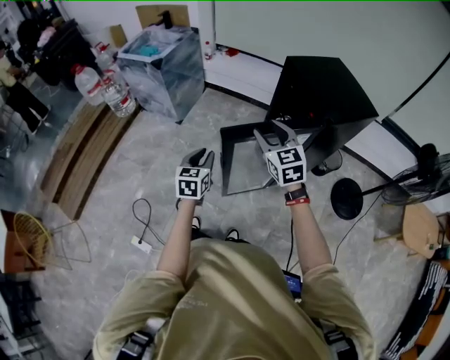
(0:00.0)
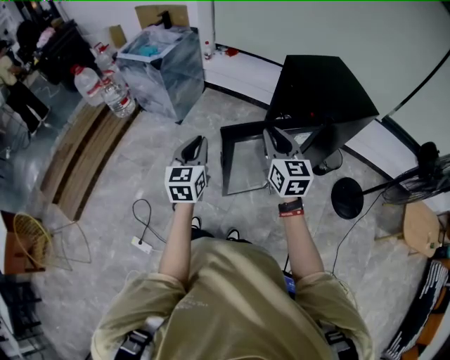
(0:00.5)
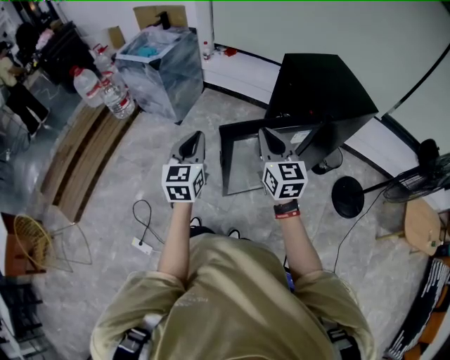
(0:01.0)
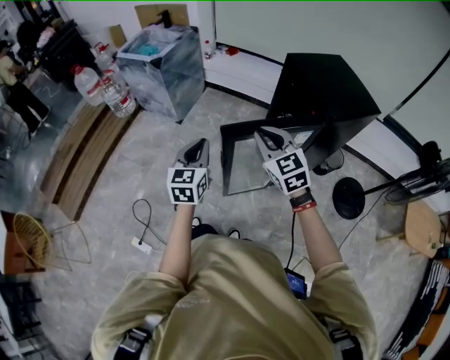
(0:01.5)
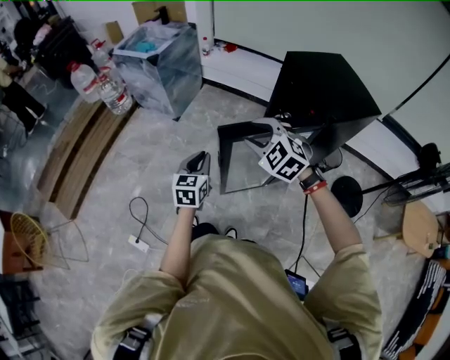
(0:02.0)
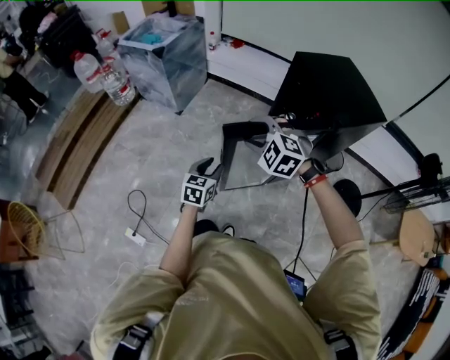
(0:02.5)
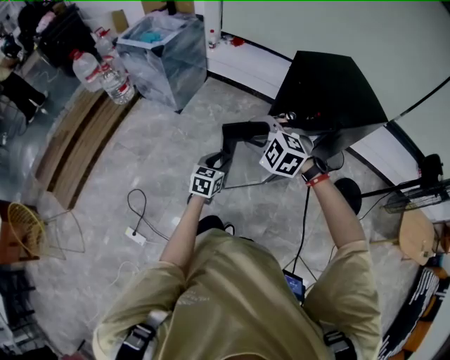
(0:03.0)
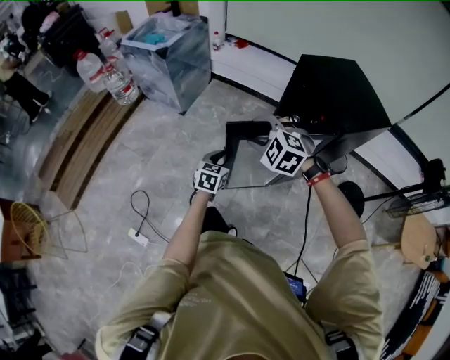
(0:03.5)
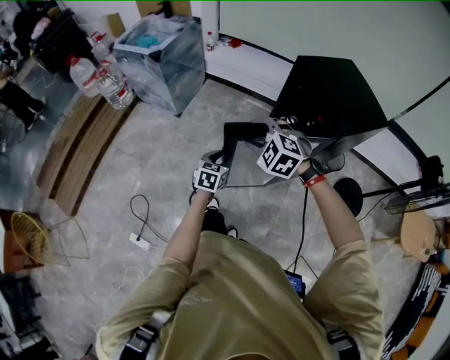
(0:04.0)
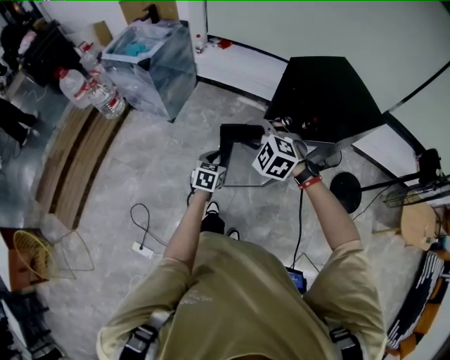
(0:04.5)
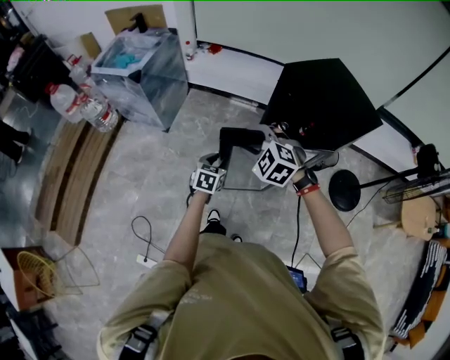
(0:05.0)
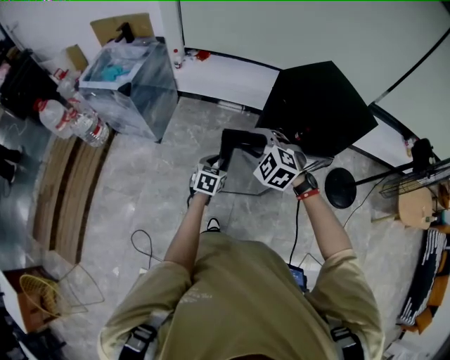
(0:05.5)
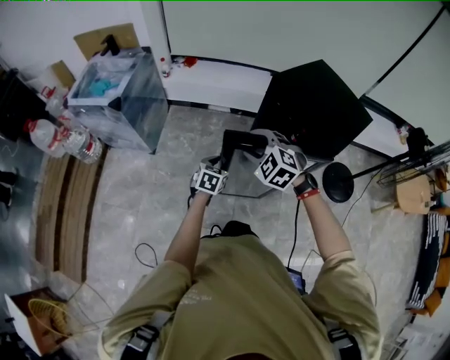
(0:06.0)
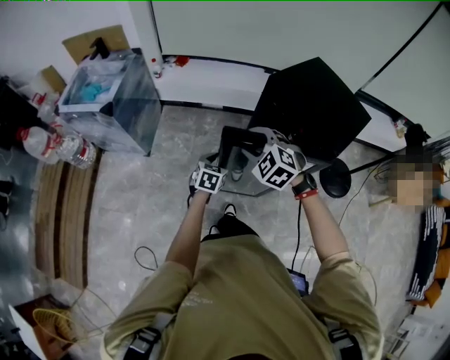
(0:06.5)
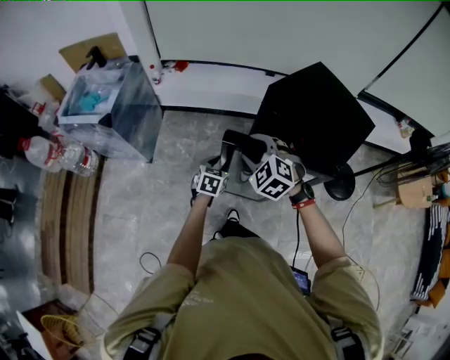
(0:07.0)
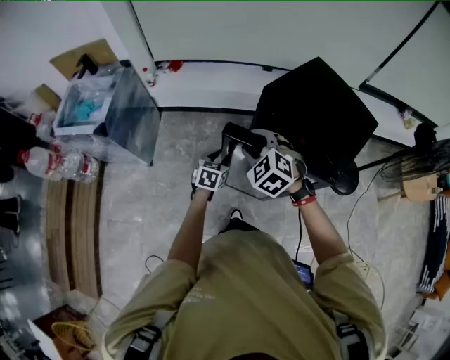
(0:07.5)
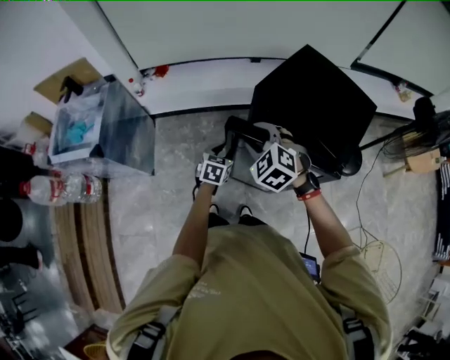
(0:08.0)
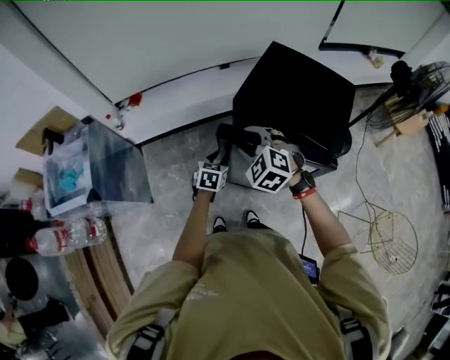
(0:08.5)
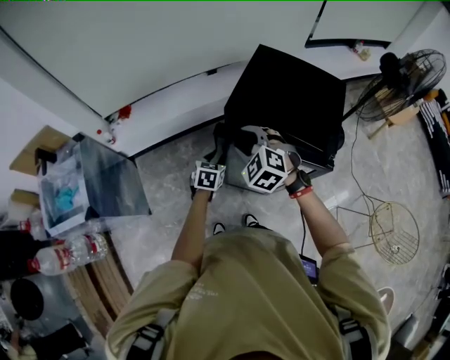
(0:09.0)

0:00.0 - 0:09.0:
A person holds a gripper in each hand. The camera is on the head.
0:00.0 - 0:02.0: The left gripper reaches about 10 cm upward, then returns. The right gripper moves roughly 5 cm, turns by about 40 degrees, and closes and opens again.
0:02.0 - 0:04.5: The right gripper goes roughly 10 cm forward; the left gripper shifts about 15 cm forward, downward and to the right, and opens its fingers.
0:04.5 - 0:07.0: Both grippers travel together forward, roughly 20 cm. The right gripper changes its angle by roughly 30 degrees.
0:07.0 - 0:09.0: Both grippers move forward, roughly 15 cm. The left gripper changes its angle by some 20 degrees, while the right gripper changes its angle by approximately 20 degrees.

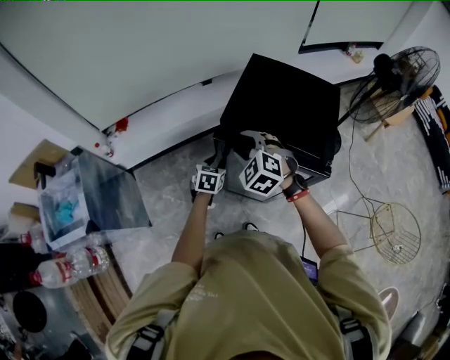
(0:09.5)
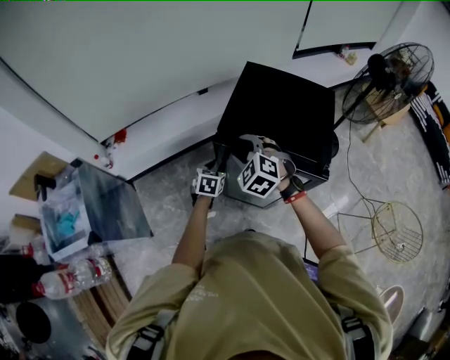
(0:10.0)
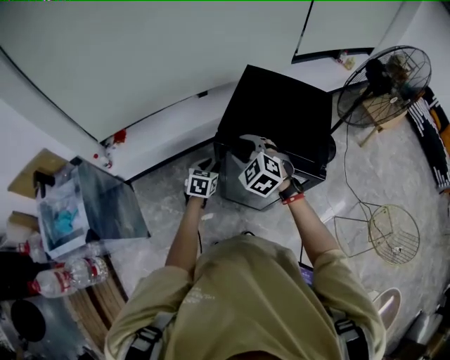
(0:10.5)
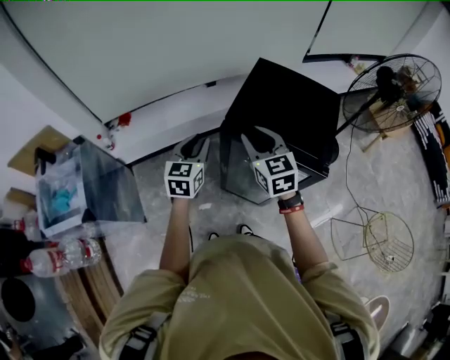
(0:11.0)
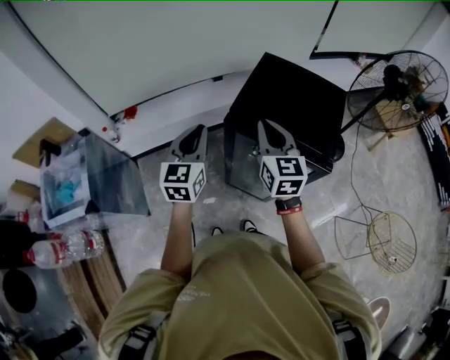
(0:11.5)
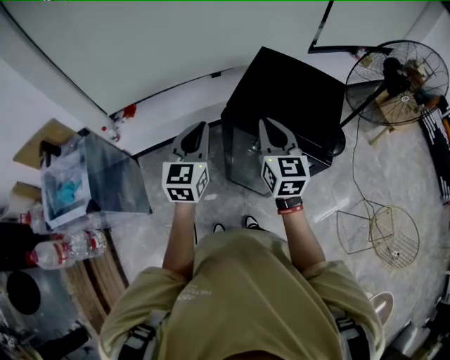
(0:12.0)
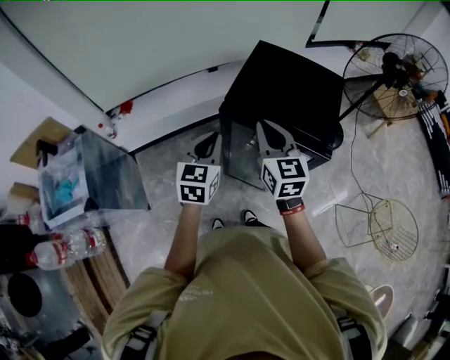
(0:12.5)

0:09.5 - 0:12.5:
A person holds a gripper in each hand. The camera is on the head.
0:09.5 - 0:11.0: The left gripper moves upward, roughly 20 cm, and turns by some 30 degrees; the right gripper travels upward by approximately 10 cm, and turns by about 50 degrees.
0:11.0 - 0:12.5: The left gripper moves backward, approximately 5 cm, travels upward and back again, some 10 cm each way, and closes its fingers; the right gripper closes up.

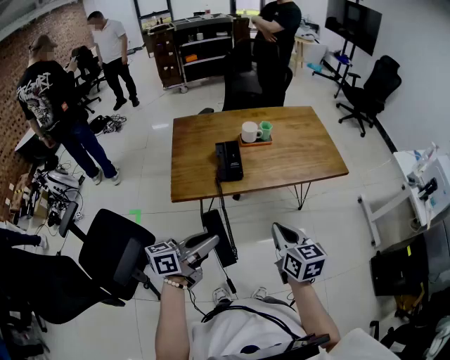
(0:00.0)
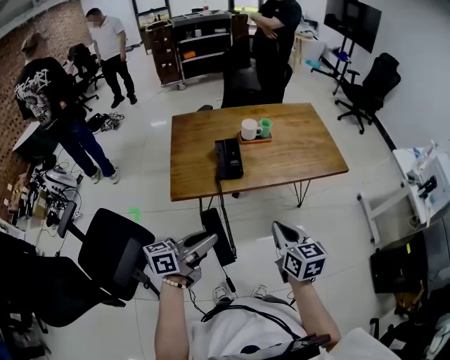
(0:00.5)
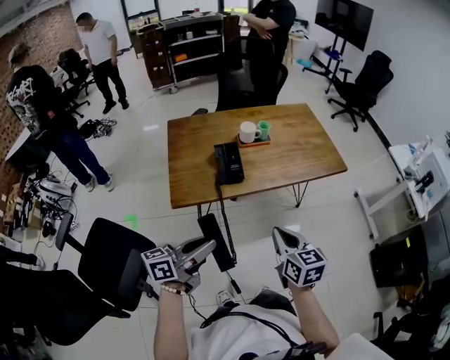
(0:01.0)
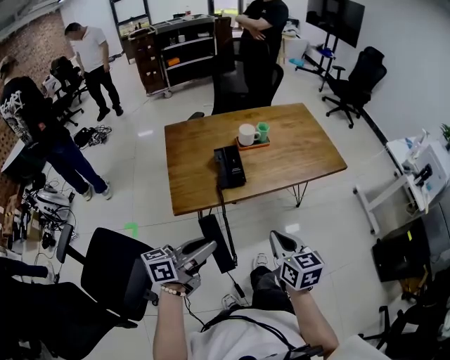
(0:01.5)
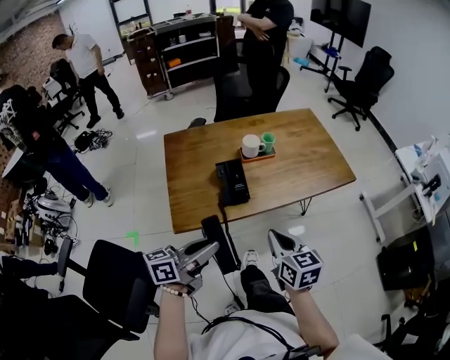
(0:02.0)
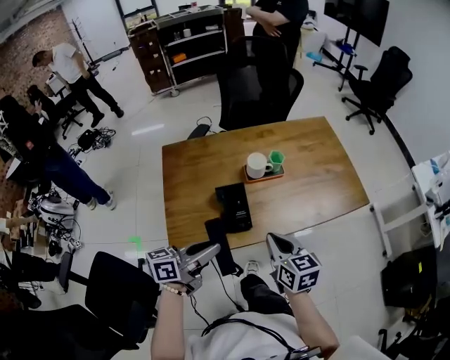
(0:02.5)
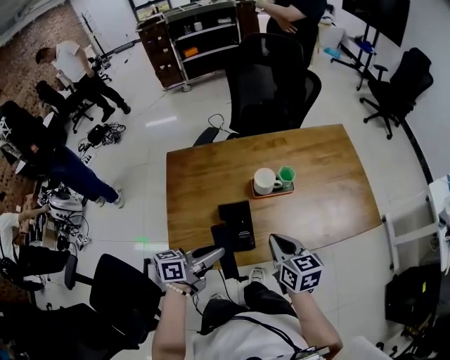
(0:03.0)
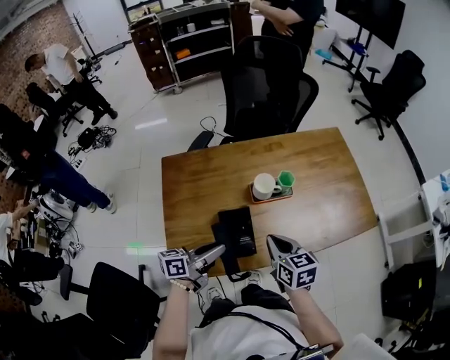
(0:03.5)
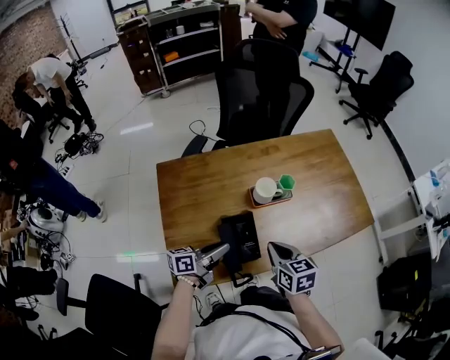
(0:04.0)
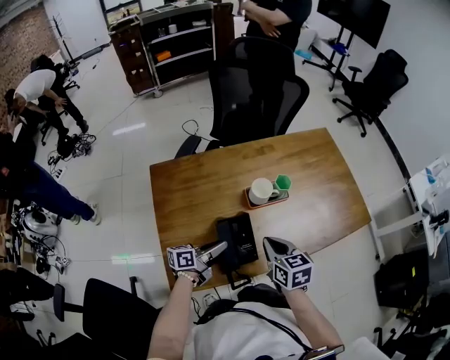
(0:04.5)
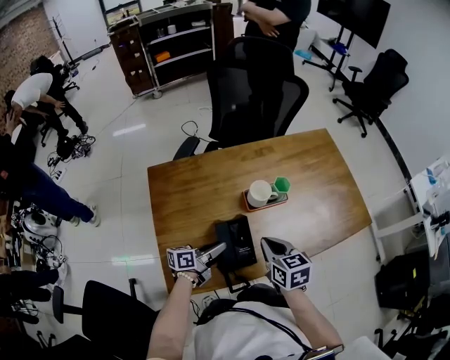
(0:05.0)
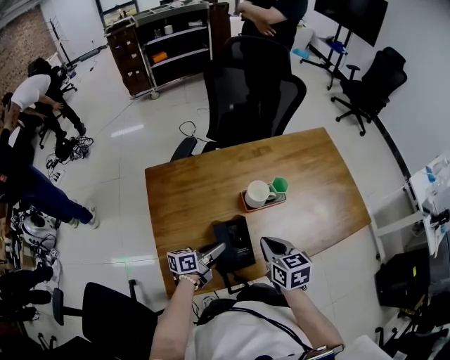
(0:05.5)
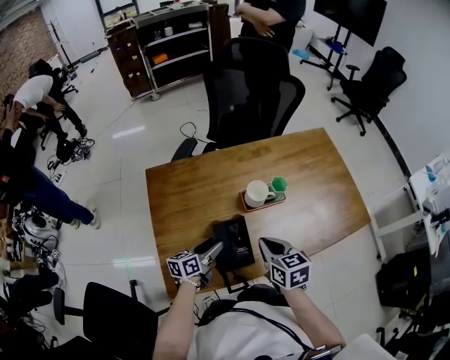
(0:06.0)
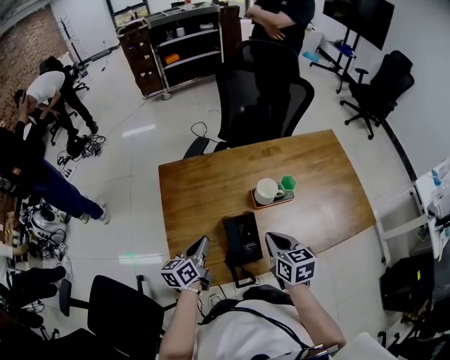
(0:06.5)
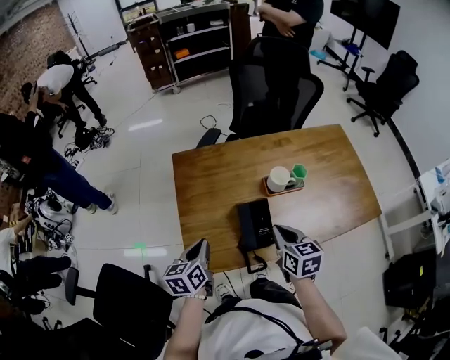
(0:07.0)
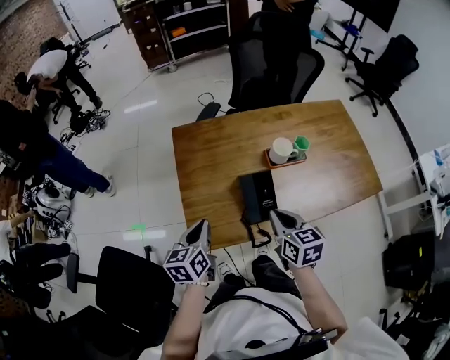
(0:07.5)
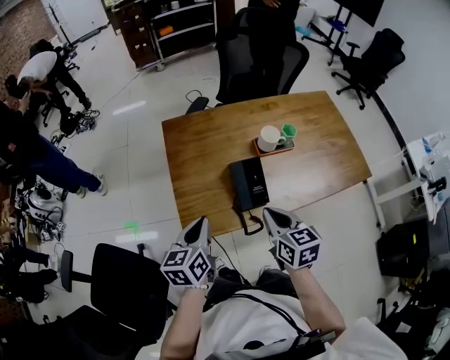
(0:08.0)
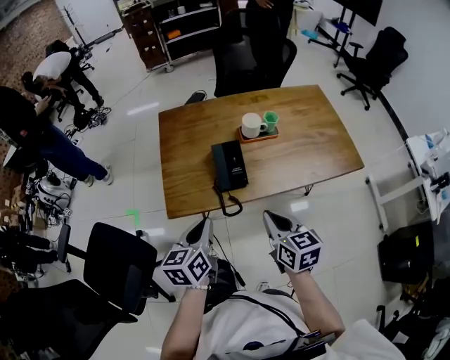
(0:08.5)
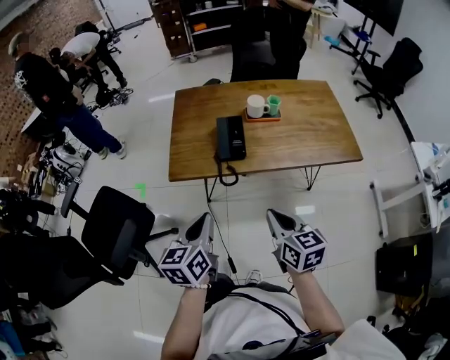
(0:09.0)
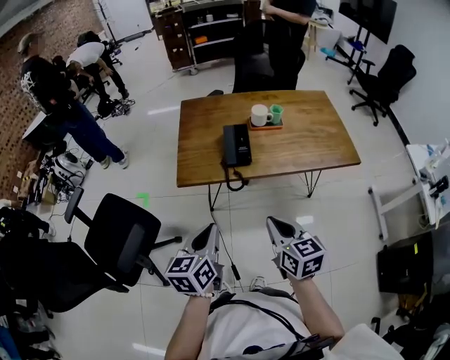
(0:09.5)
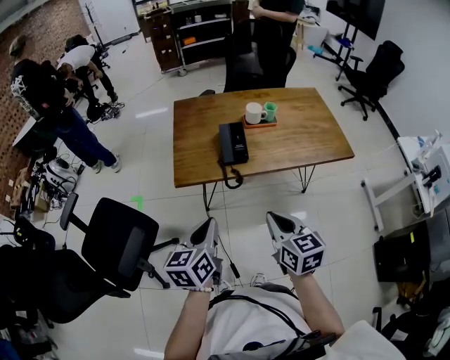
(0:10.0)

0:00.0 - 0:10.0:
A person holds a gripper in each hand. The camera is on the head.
0:00.0 - 0:02.0: The grippers both shift forward and to the left by about 10 cm.
0:02.0 - 0:04.0: The right gripper heads forward, covering about 20 cm, while the left gripper travels forward and downward by some 30 cm.
0:04.0 - 0:06.0: The left gripper travels downward by approximately 10 cm, changes its angle by some 20 degrees, and opens its fingers.
0:06.0 - 0:08.0: The right gripper shifts approximately 15 cm backward, to the left and upward. The left gripper heads upward, backward and to the left, covering approximately 25 cm, swivels roughly 30 degrees, and closes its fingers.
0:08.0 - 0:10.0: The grippers both shift backward by about 25 cm.

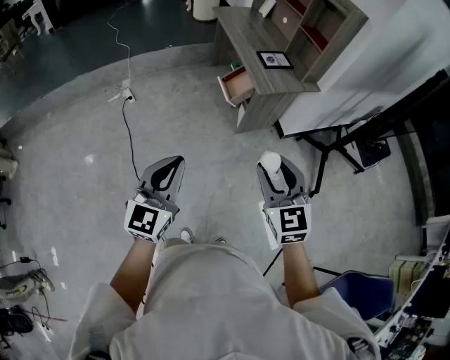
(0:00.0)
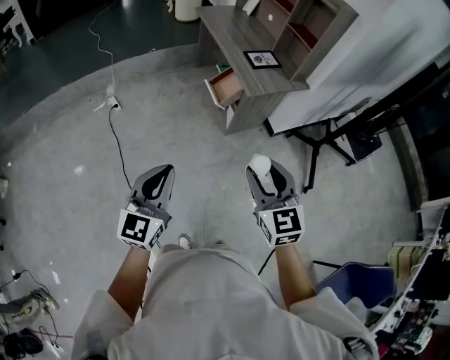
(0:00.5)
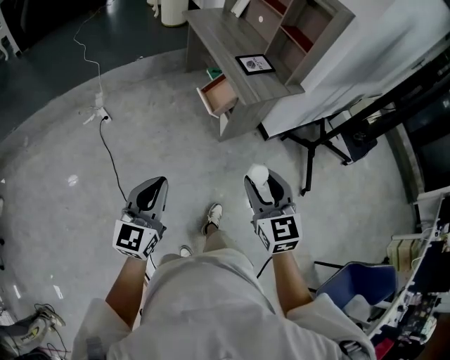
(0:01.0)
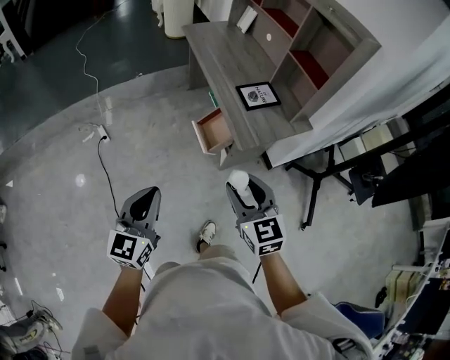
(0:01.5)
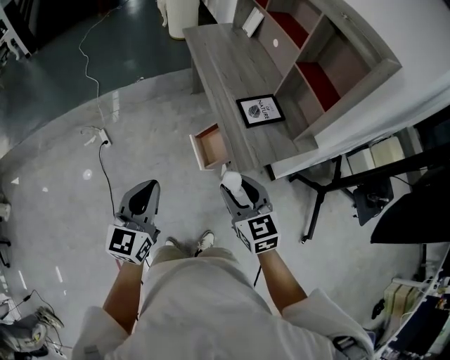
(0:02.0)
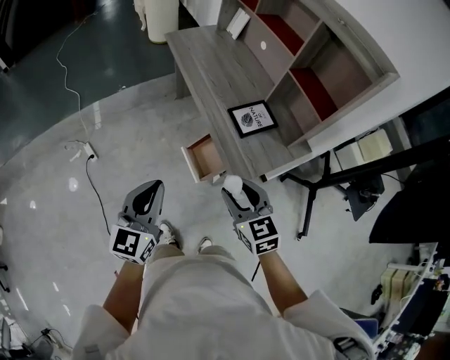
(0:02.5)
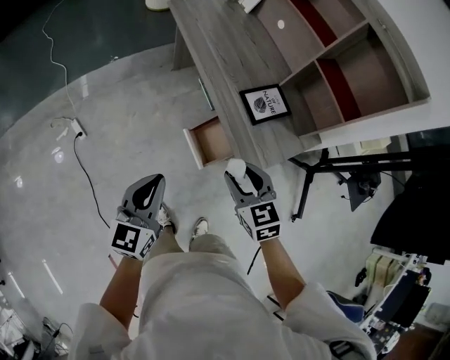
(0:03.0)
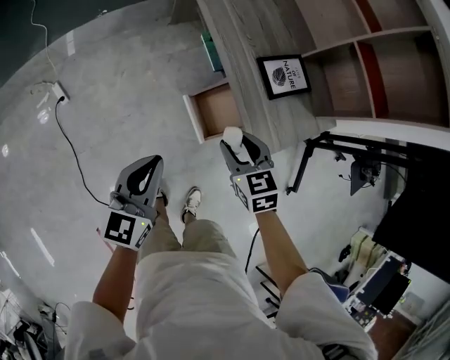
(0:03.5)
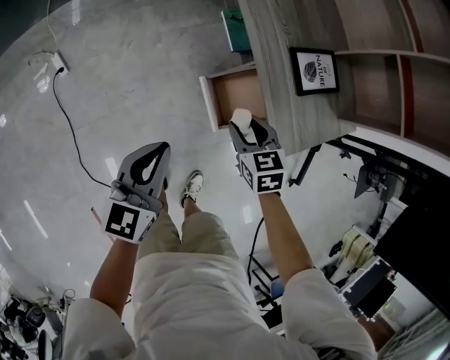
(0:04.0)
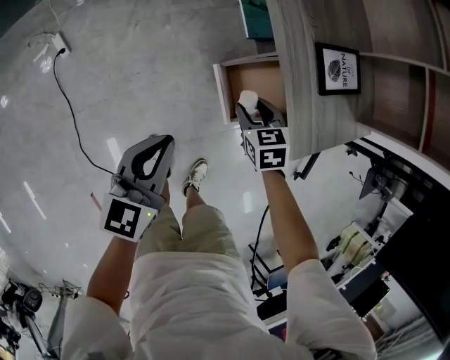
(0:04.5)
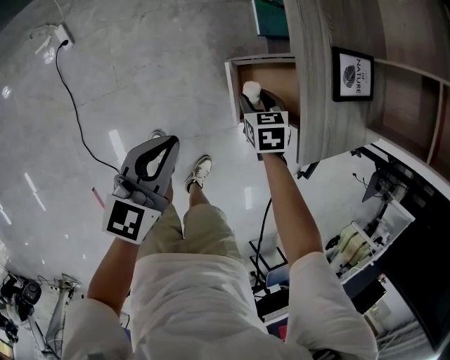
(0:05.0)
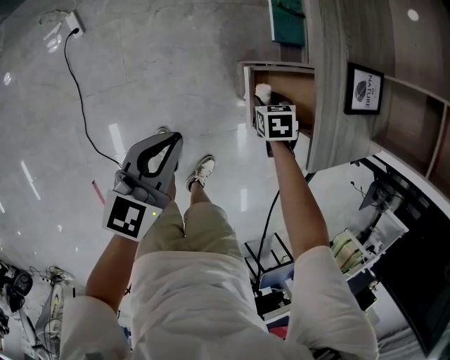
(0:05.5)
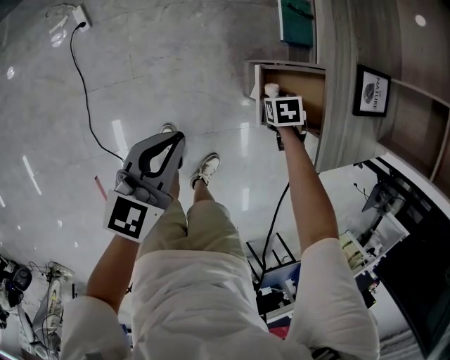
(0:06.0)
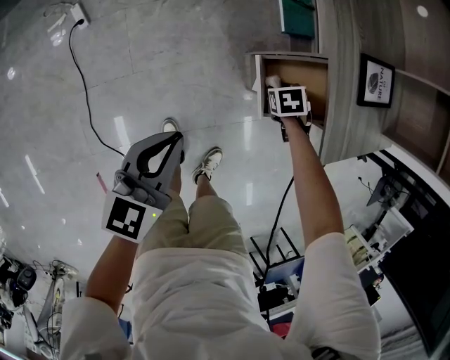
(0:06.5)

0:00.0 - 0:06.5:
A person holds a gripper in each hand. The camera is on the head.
0:00.0 - 0:02.0: The two grippers travel together, forward, about 40 cm.
0:02.0 - 0:04.5: Both grippers travel together downward and forward, about 35 cm. The left gripper turns by roughly 20 degrees. Meanwhile the right gripper points its fingers roughly 40 degrees further downward.
0:04.5 - 0:06.5: The right gripper is displaced downward by some 15 cm, and rotates about 30 degrees. The left gripper changes place by some 10 cm.
